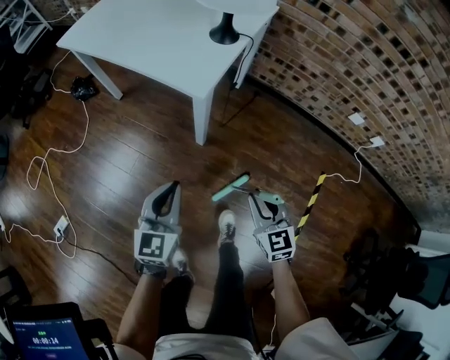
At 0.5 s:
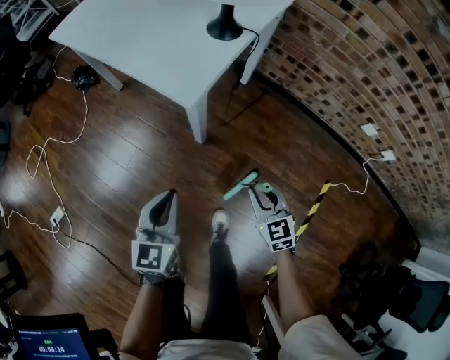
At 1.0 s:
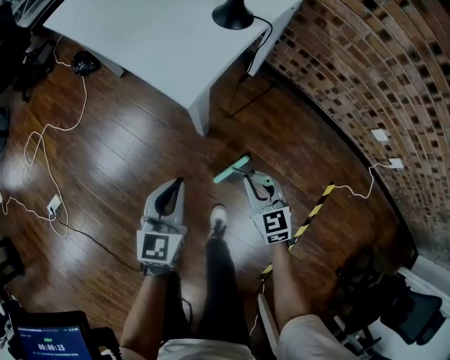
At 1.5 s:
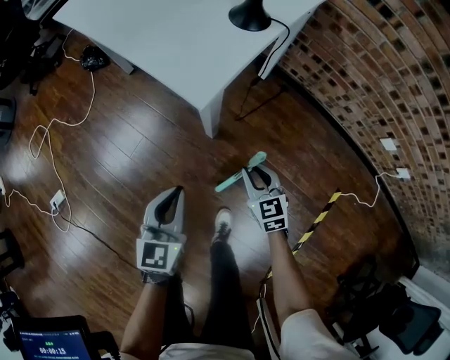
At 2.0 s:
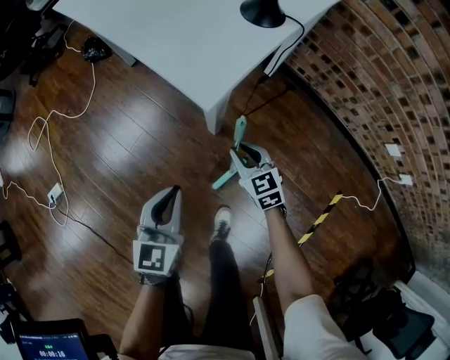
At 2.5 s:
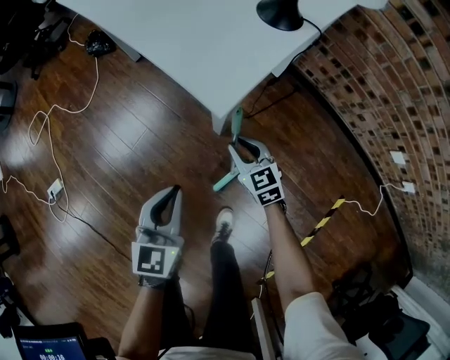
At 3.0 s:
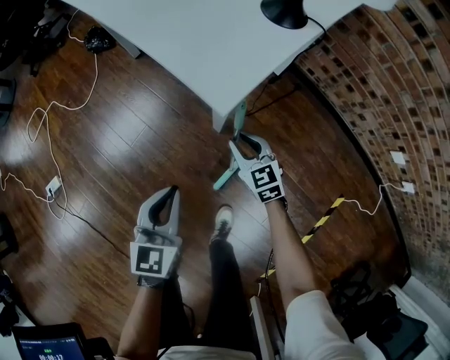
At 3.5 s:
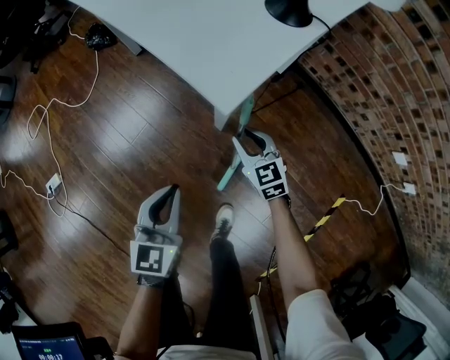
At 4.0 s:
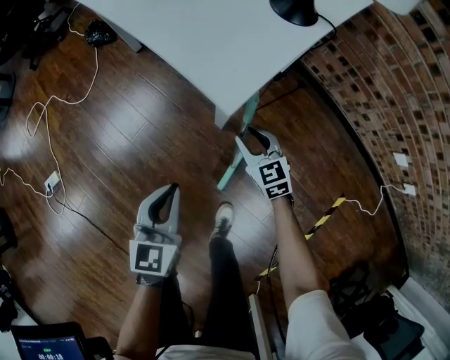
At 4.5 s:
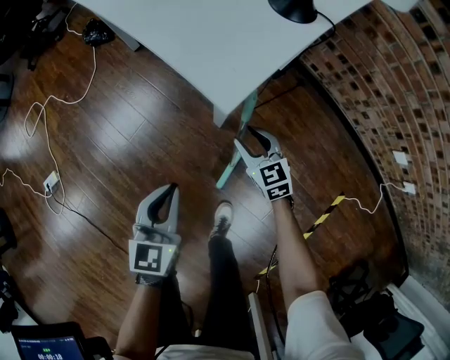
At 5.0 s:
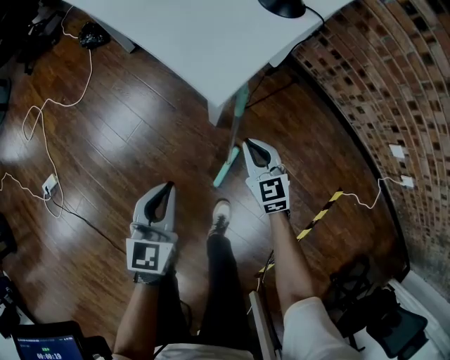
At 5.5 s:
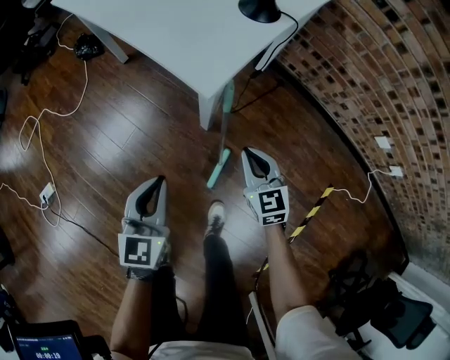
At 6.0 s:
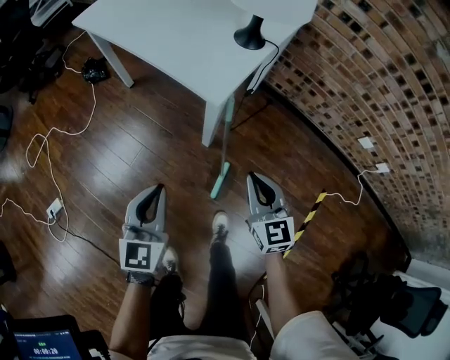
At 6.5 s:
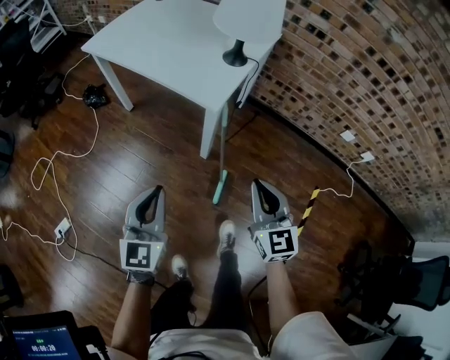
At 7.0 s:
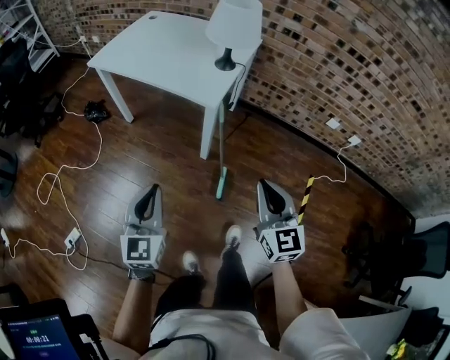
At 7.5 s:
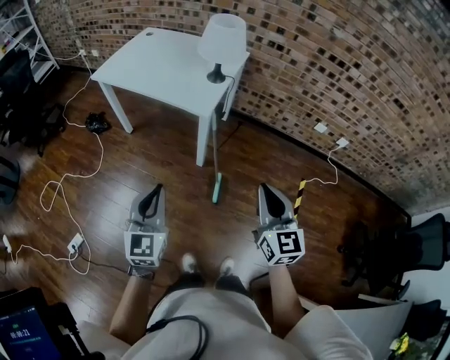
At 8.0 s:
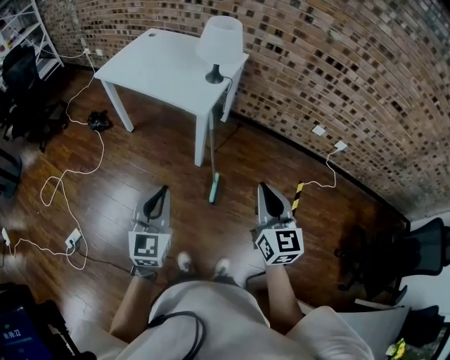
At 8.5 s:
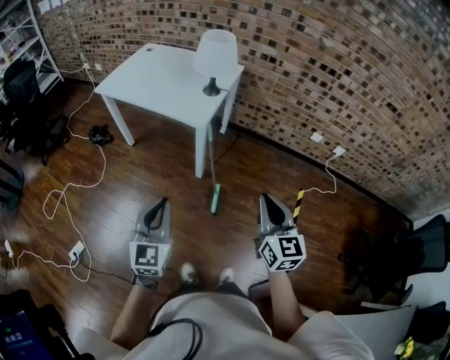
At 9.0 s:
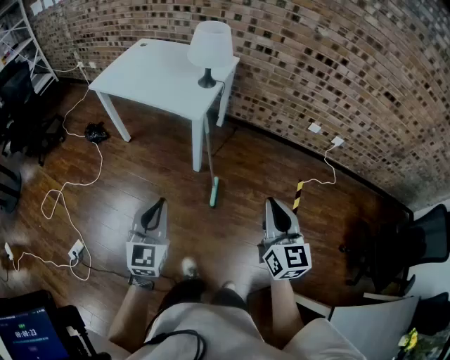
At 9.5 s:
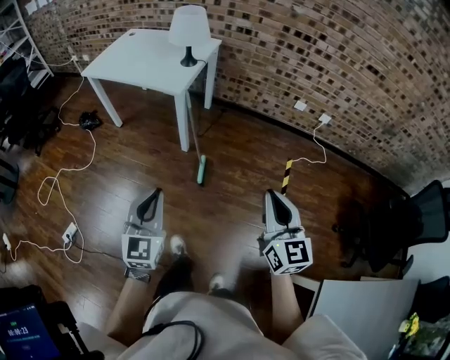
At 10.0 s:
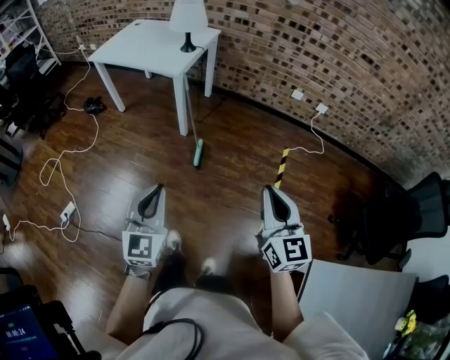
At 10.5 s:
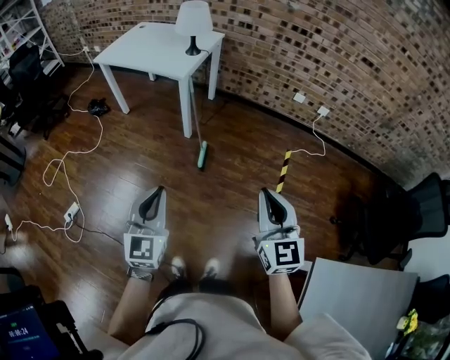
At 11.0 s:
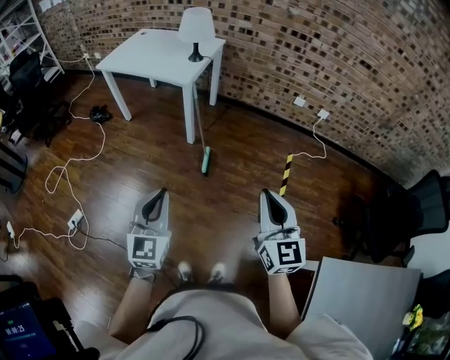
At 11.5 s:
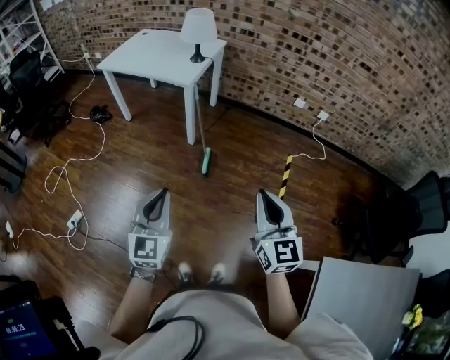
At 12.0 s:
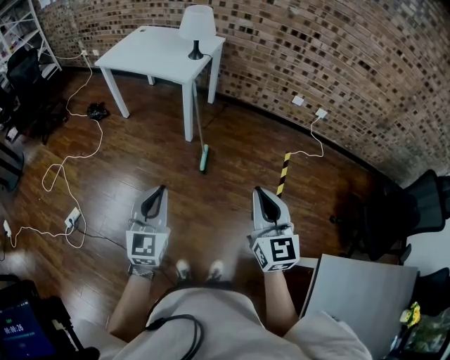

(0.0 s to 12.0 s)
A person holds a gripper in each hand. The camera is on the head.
0.0 s - 2.0 s: The left gripper goes about 10 cm downward and forward. Meanwhile the right gripper heads forward and downward, covering approximately 30 cm, and swivels about 20 degrees.
2.0 s - 4.0 s: The right gripper ends up about 5 cm from where it was.
4.0 s - 6.0 s: The right gripper heads upward and backward, covering roughly 30 cm, swivels roughly 20 degrees, and closes up. The left gripper moves upward, roughly 15 cm.
6.0 s - 8.0 s: The two grippers go about 35 cm upward and backward. The right gripper rotates roughly 20 degrees.
8.0 s - 10.0 s: The two grippers go roughly 30 cm backward and to the right.
10.0 s - 12.0 s: The grippers both shift to the left by approximately 10 cm.

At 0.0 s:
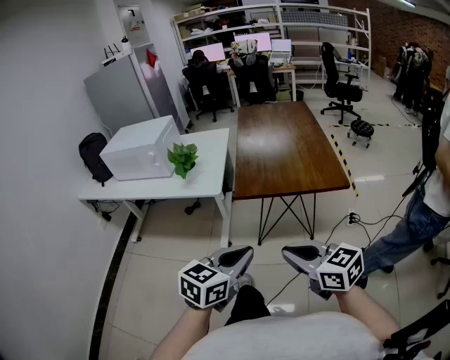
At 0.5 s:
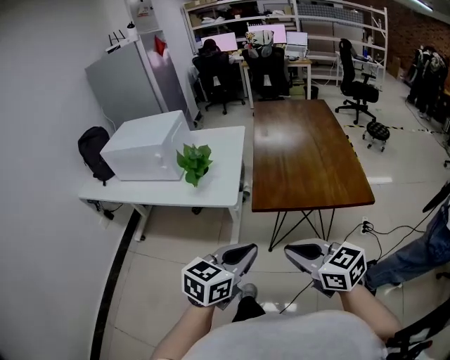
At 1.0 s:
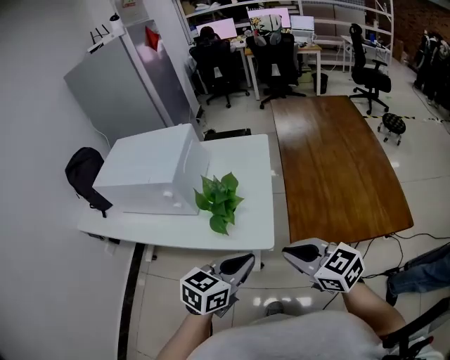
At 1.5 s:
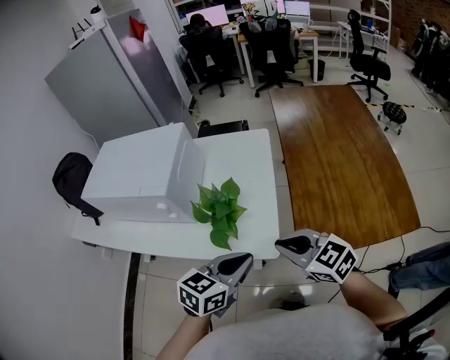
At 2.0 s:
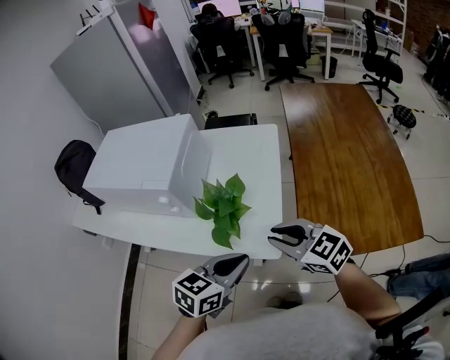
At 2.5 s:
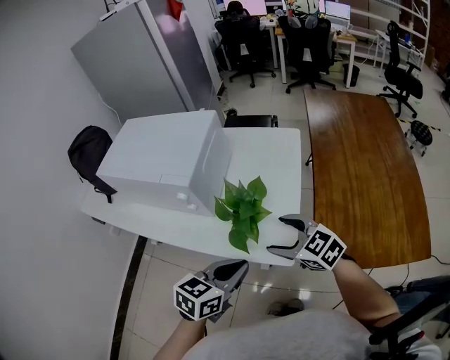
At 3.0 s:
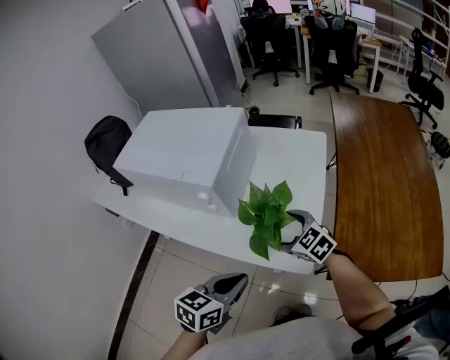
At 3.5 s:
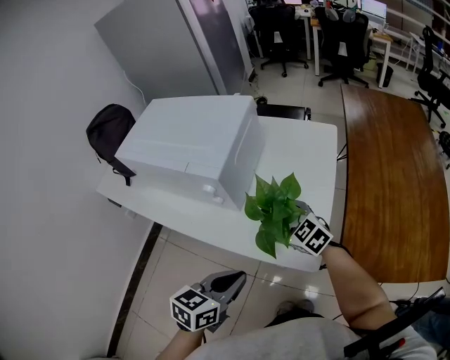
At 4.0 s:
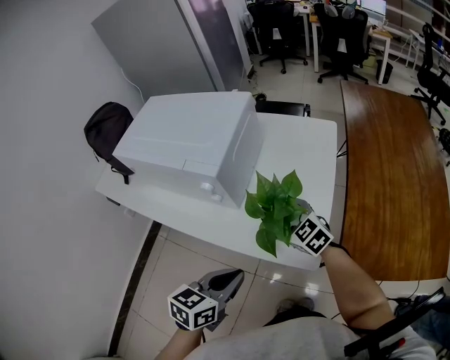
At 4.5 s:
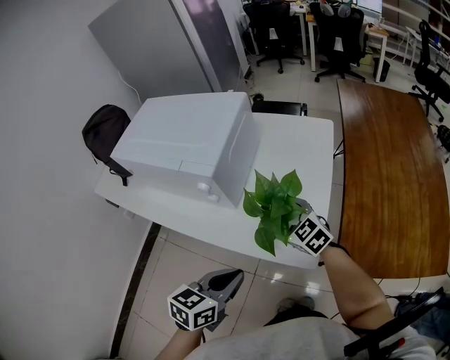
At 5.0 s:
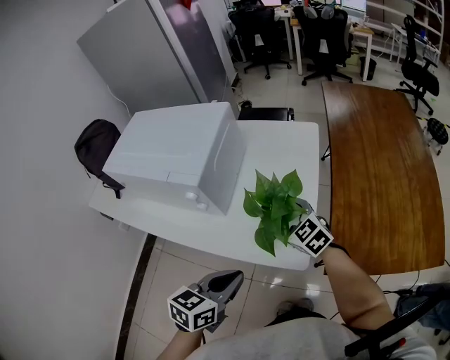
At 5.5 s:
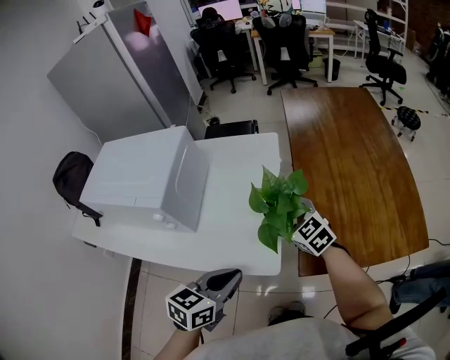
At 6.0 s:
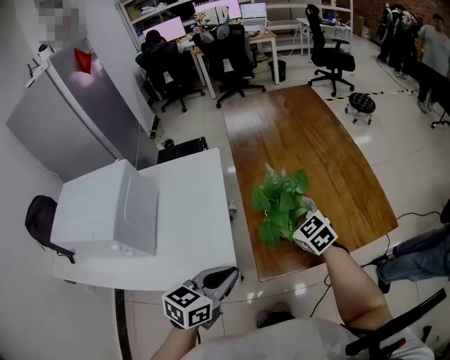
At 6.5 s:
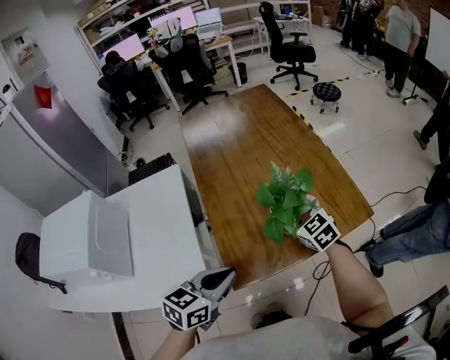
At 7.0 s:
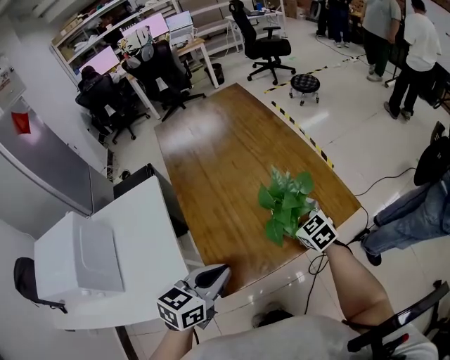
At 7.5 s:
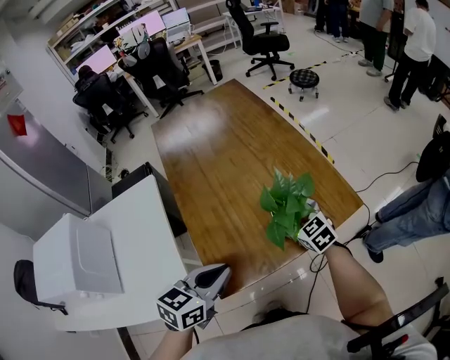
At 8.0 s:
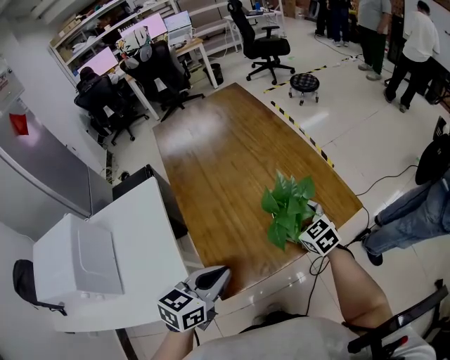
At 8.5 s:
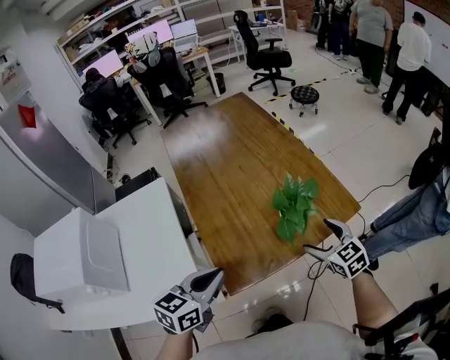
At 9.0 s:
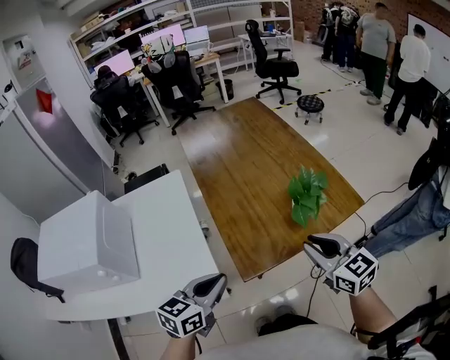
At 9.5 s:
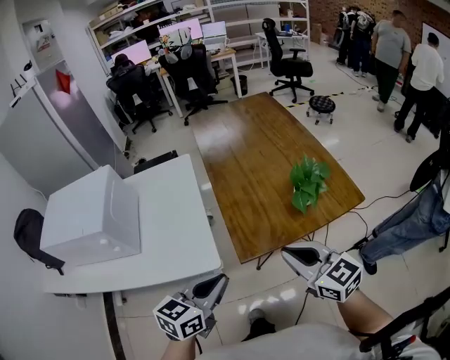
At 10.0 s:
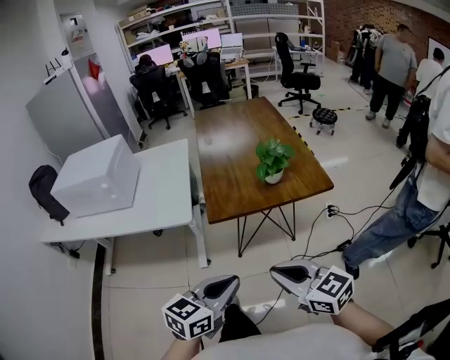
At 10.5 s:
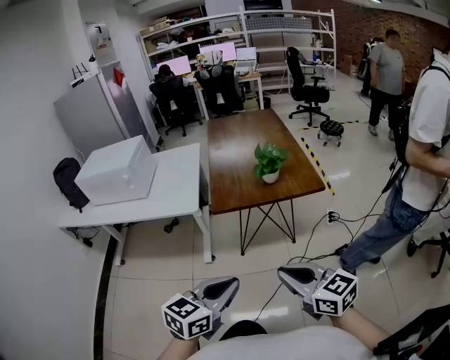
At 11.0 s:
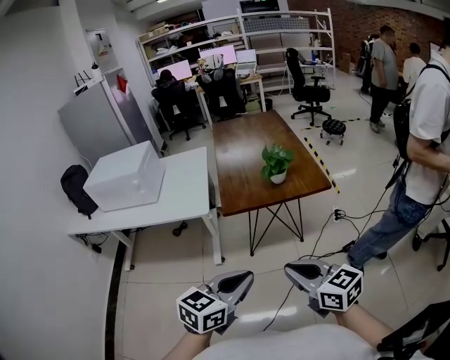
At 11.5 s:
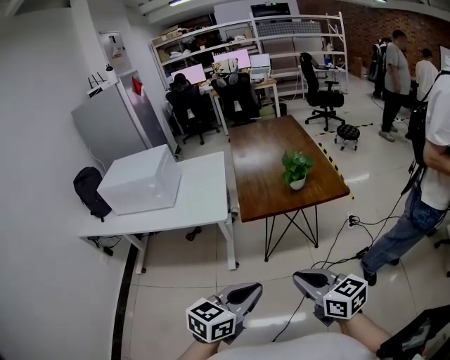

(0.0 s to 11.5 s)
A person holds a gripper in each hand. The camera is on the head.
0.0 s - 2.0 s: Both grippers are carried forward and to the left, some 50 cm.
2.0 s - 4.0 s: The left gripper shifts approximately 15 cm to the left and downward; the right gripper is displaced downward, forward and to the left by about 25 cm, and opens.
4.0 s - 6.0 s: The right gripper ends up some 35 cm from where it was, and turns by roughly 30 degrees, while the left gripper shifts by roughly 25 cm, and turns by approximately 30 degrees.
6.0 s - 7.5 s: The right gripper heads to the right, covering some 20 cm, and swivels about 20 degrees; the left gripper heads to the right and forward, covering roughly 15 cm.
7.5 s - 9.5 s: The right gripper heads backward and upward, covering some 35 cm, turns by approximately 30 degrees, and closes its fingers, while the left gripper is displaced backward and to the left by roughly 20 cm.
9.5 s - 11.5 s: The right gripper goes roughly 35 cm backward. The left gripper goes roughly 40 cm backward and to the right.

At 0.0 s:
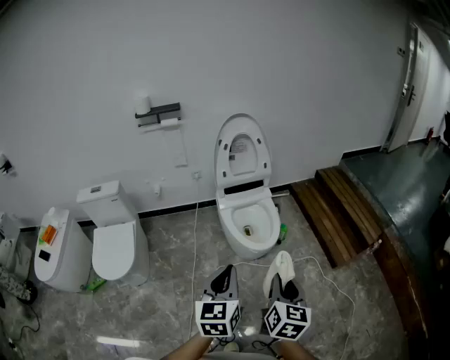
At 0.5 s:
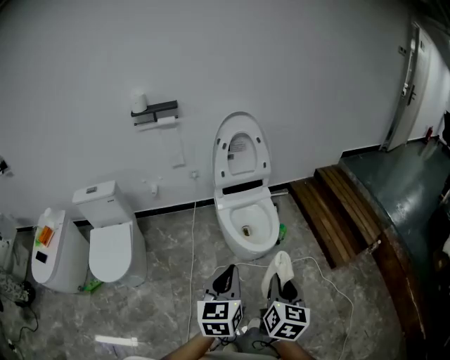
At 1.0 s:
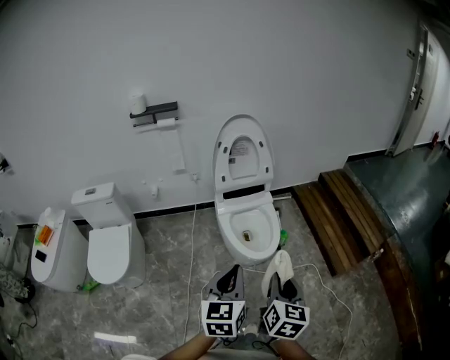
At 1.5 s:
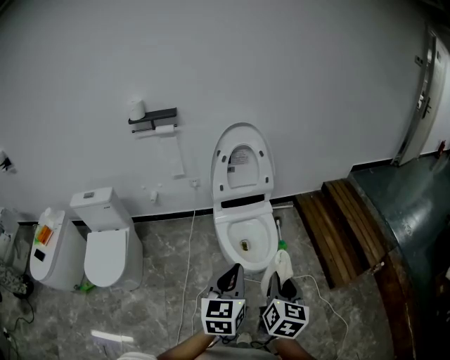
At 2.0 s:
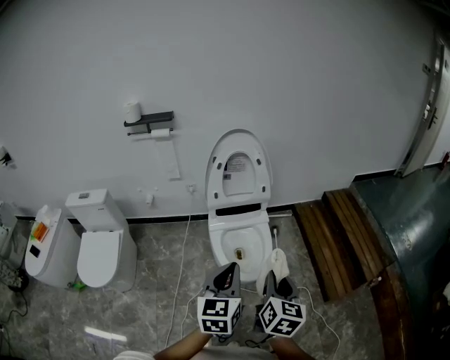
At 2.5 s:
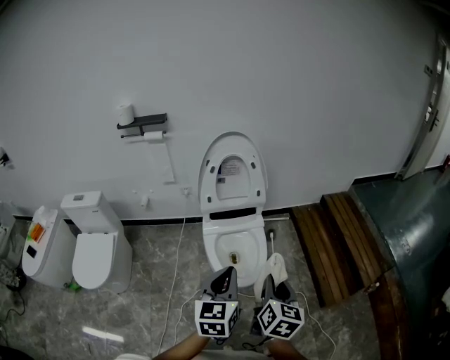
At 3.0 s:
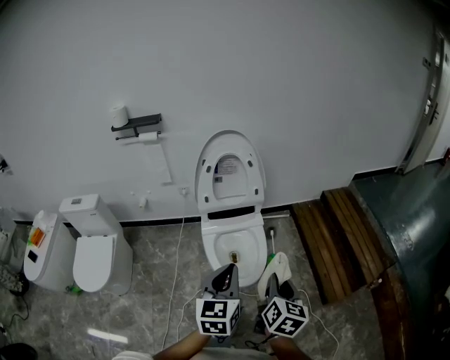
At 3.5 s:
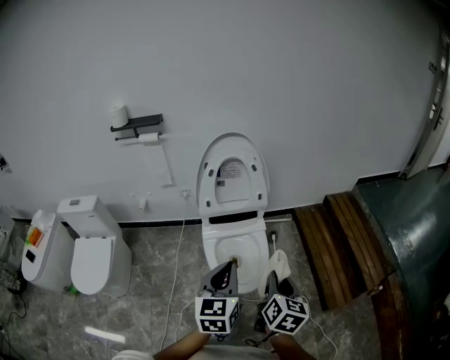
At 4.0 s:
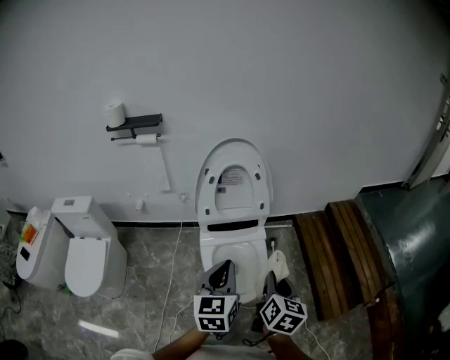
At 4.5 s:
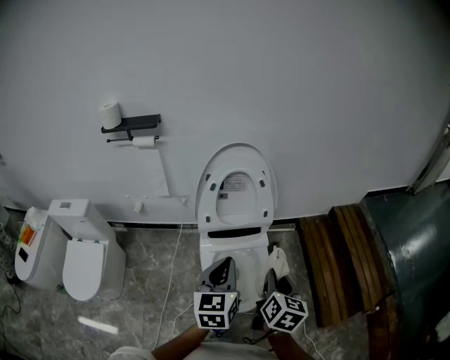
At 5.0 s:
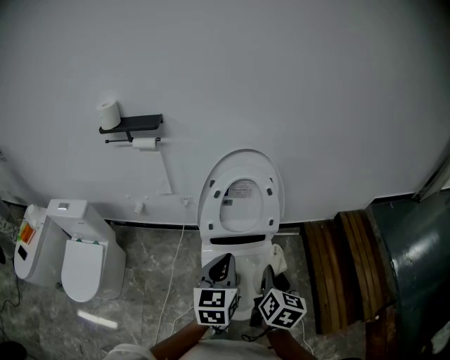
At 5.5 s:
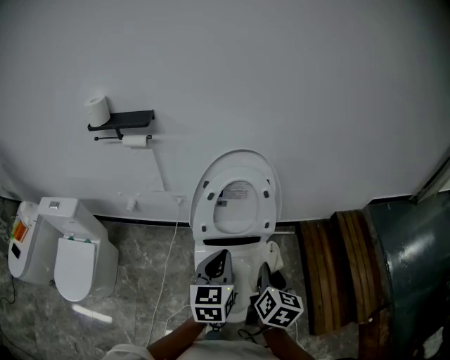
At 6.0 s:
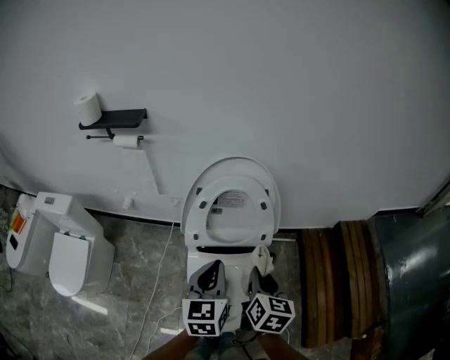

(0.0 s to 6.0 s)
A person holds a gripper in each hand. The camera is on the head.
0.0 s - 2.0 s: The grippers both shift forward by some 20 cm.
2.0 s - 4.0 s: Both grippers travel together forward, approximately 15 cm.
4.0 s - 6.0 s: The two grippers go about 25 cm forward.
